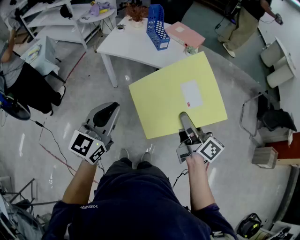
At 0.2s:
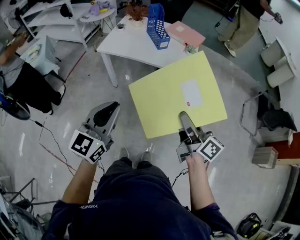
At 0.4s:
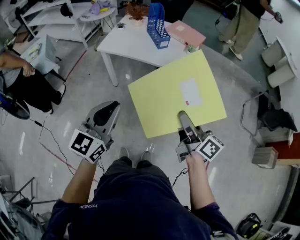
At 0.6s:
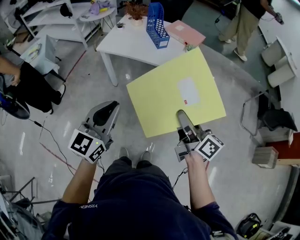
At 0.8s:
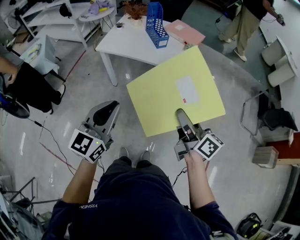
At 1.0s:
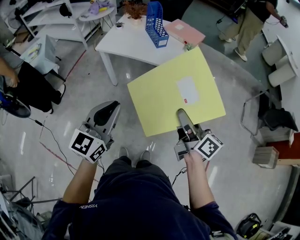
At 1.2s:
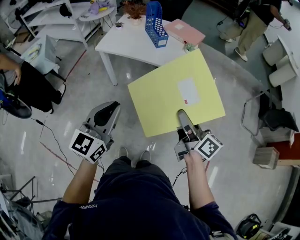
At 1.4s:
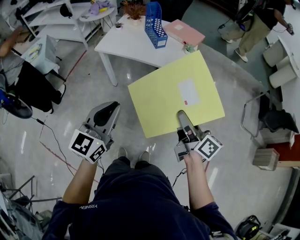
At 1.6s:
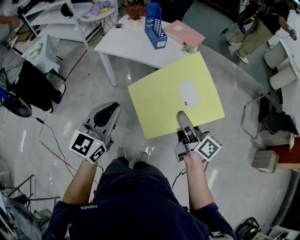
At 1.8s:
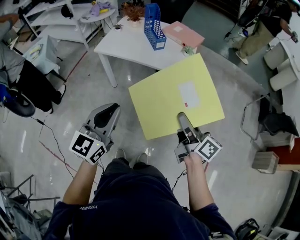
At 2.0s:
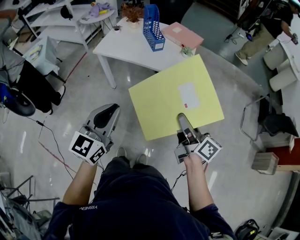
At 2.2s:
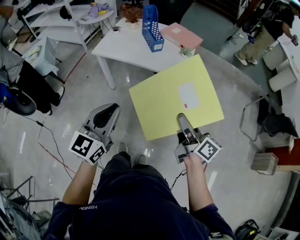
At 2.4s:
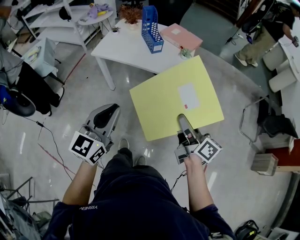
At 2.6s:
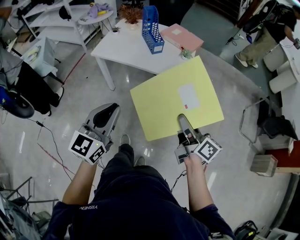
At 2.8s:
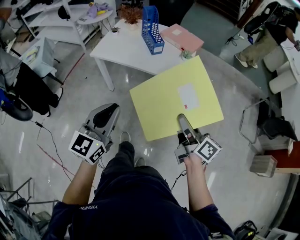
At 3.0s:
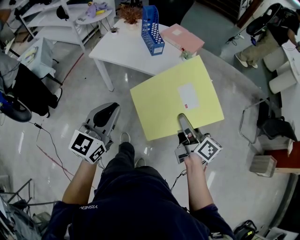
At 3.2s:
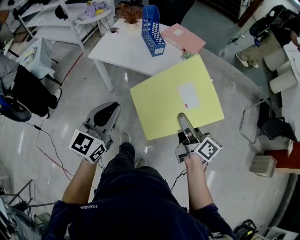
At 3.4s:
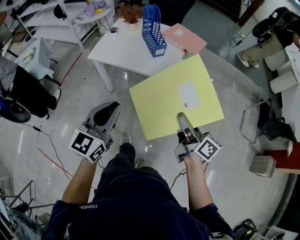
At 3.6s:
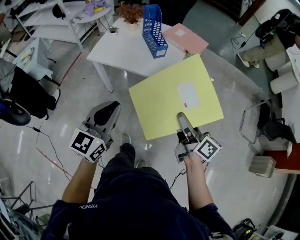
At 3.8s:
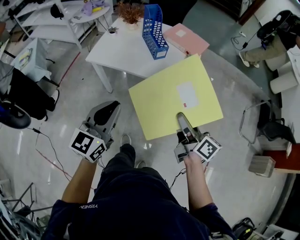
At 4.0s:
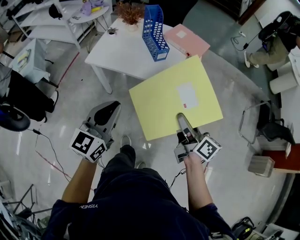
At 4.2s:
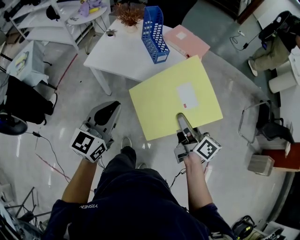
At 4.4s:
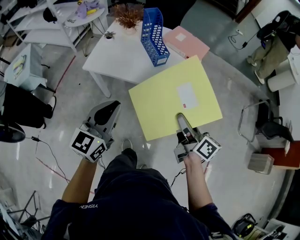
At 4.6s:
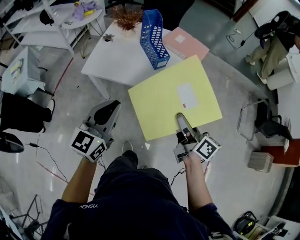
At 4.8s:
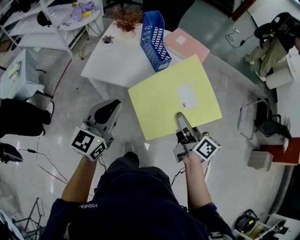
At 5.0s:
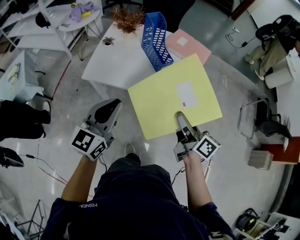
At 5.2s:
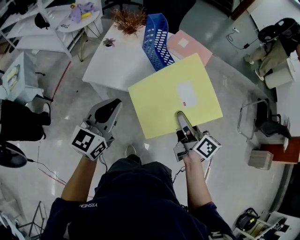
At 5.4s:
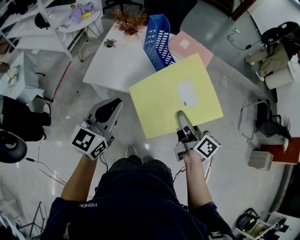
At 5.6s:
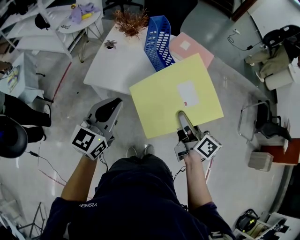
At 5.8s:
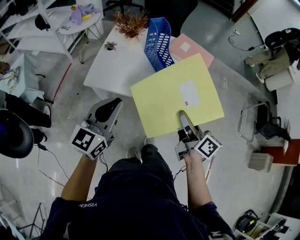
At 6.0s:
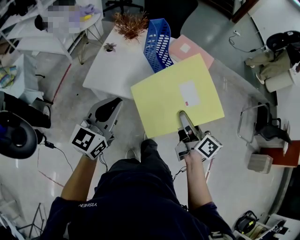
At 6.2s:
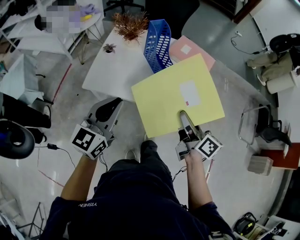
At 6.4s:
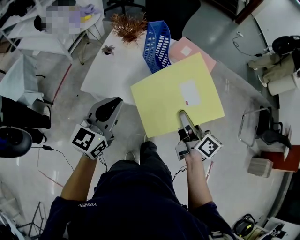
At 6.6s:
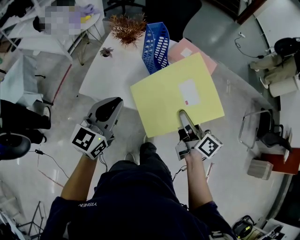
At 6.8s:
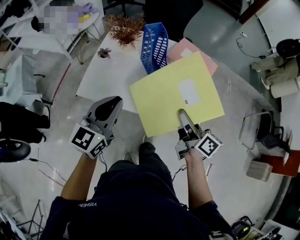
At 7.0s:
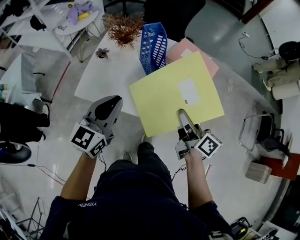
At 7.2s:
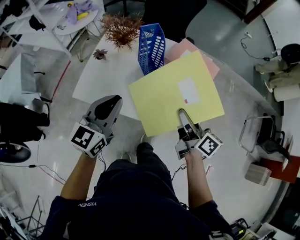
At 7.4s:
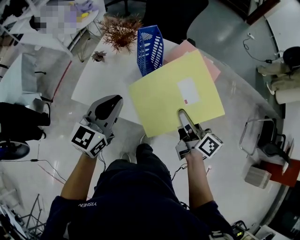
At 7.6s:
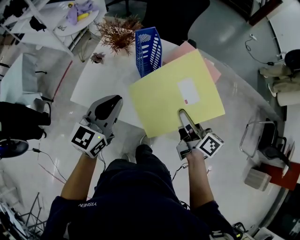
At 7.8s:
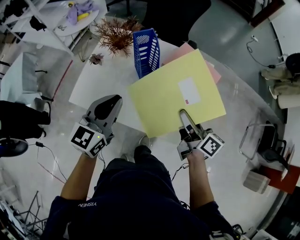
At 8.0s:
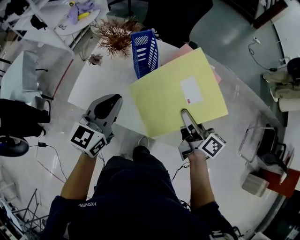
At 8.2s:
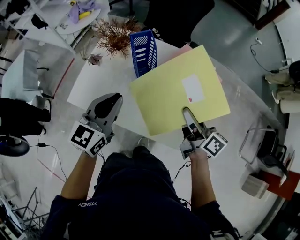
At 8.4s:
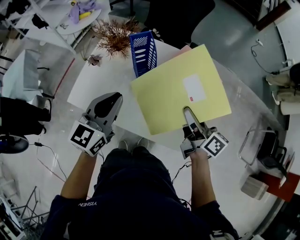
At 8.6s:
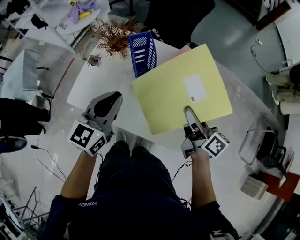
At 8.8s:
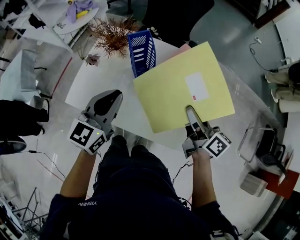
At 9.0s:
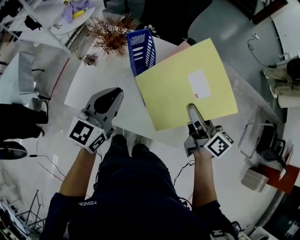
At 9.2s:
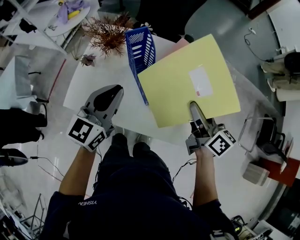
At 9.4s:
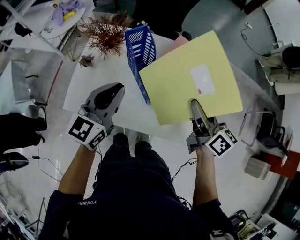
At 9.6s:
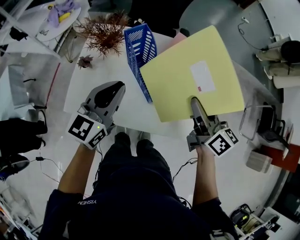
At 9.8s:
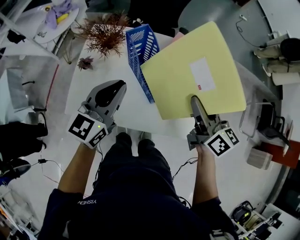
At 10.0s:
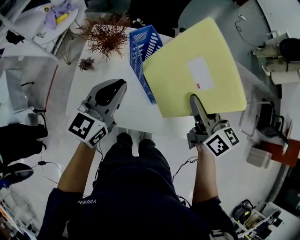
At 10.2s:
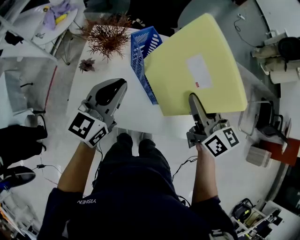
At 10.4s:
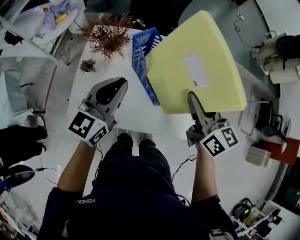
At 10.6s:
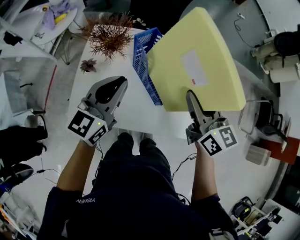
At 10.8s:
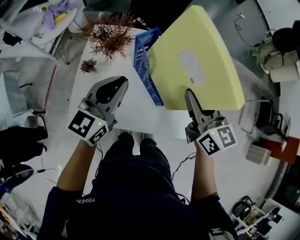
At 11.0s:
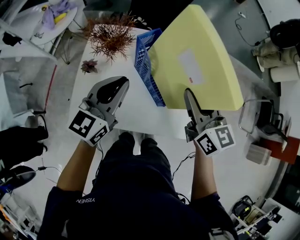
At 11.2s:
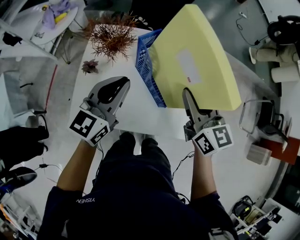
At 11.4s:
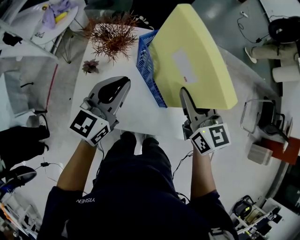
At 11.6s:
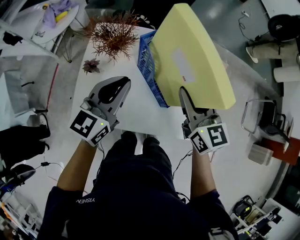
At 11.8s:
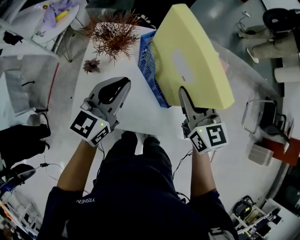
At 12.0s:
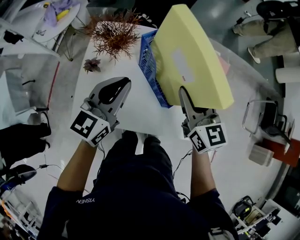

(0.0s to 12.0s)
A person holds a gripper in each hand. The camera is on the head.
0.0s - 1.6s: The right gripper moves about 5 cm.
1.6s - 3.0s: Both grippers move forward, approximately 5 cm.
3.0s - 4.4s: The right gripper moves forward and to the left, roughly 15 cm. The left gripper shifts about 15 cm forward.
4.4s - 6.0s: The two grippers go some 15 cm forward and to the left.
6.0s - 7.6s: Both grippers travel together forward and to the right, roughly 20 cm.
7.6s - 9.0s: The two grippers go about 5 cm forward.
9.0s - 10.4s: The right gripper is displaced to the left and upward by some 10 cm, and changes its angle by roughly 30 degrees, while the left gripper travels to the left by roughly 5 cm.
10.4s - 12.0s: The right gripper heads to the left, covering some 5 cm.

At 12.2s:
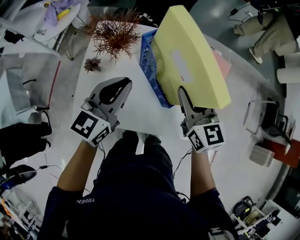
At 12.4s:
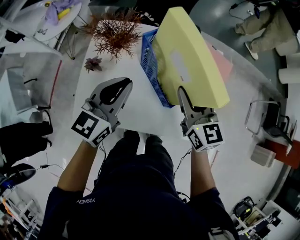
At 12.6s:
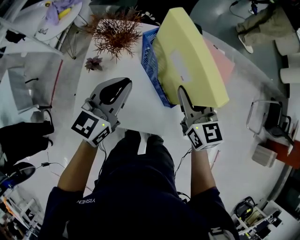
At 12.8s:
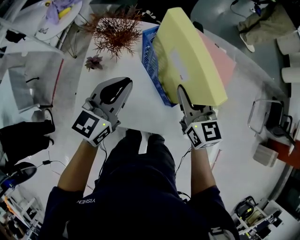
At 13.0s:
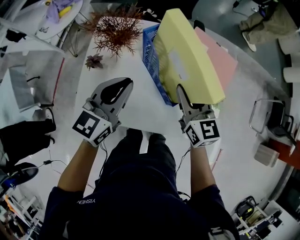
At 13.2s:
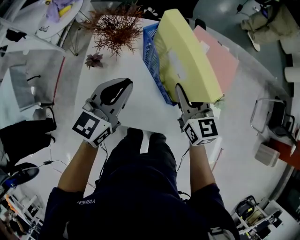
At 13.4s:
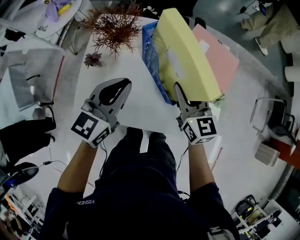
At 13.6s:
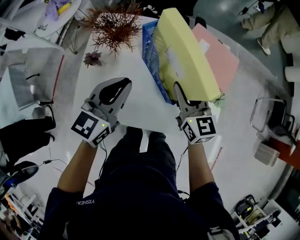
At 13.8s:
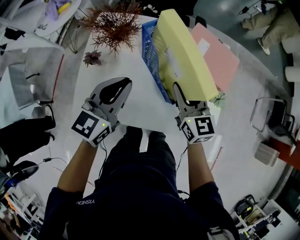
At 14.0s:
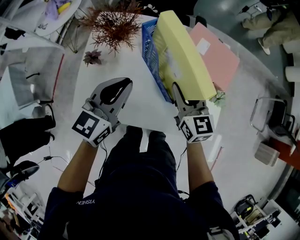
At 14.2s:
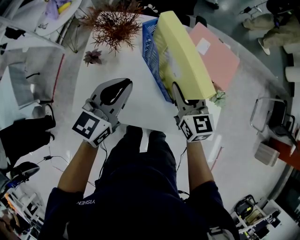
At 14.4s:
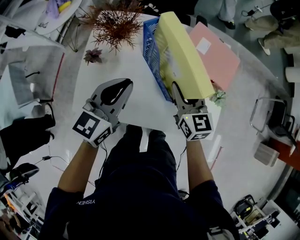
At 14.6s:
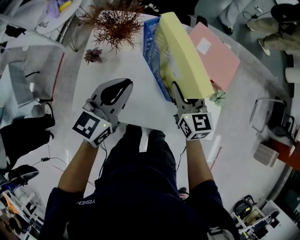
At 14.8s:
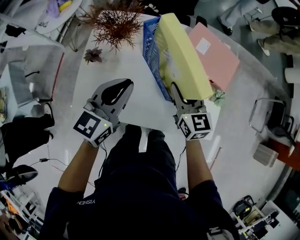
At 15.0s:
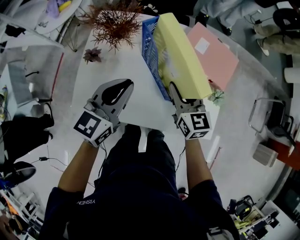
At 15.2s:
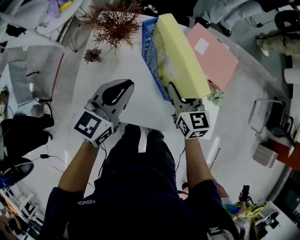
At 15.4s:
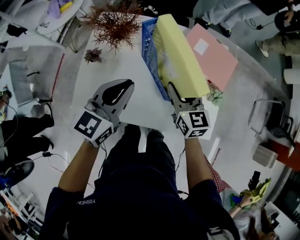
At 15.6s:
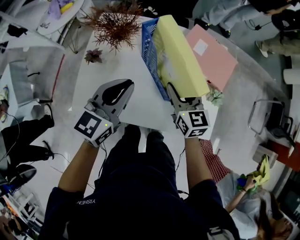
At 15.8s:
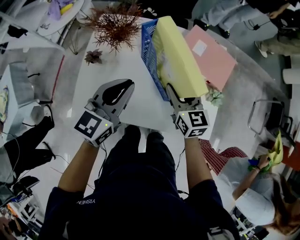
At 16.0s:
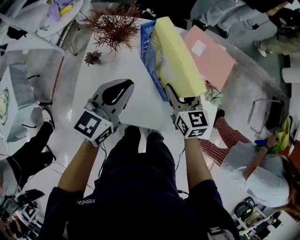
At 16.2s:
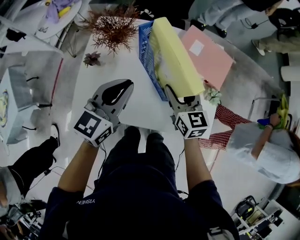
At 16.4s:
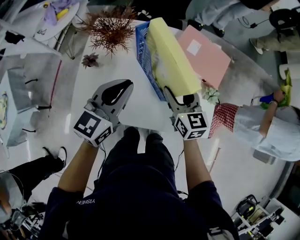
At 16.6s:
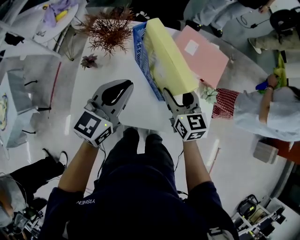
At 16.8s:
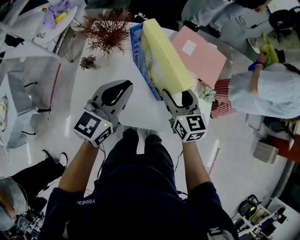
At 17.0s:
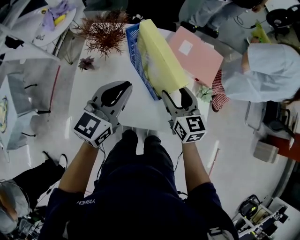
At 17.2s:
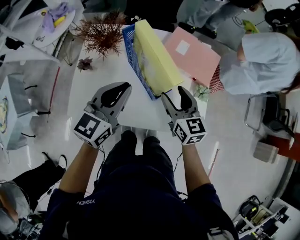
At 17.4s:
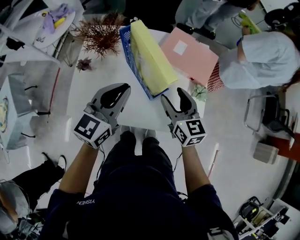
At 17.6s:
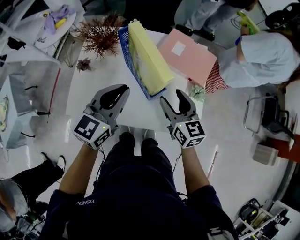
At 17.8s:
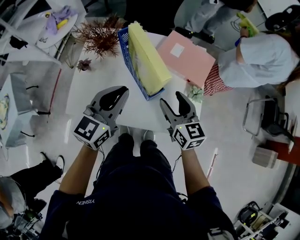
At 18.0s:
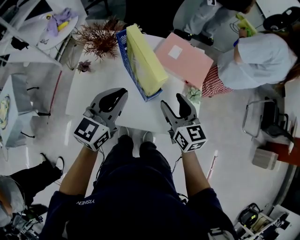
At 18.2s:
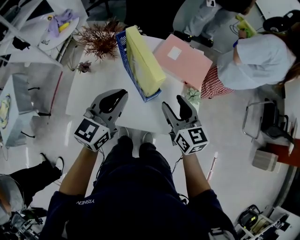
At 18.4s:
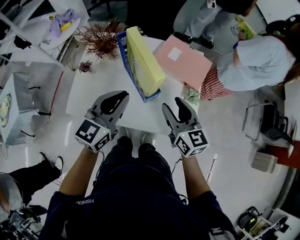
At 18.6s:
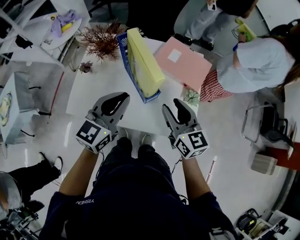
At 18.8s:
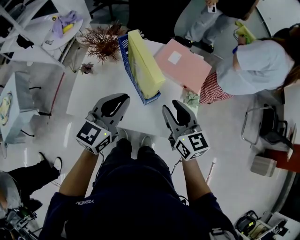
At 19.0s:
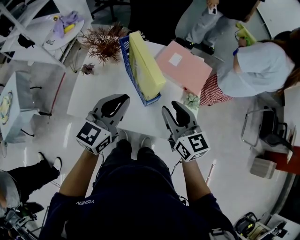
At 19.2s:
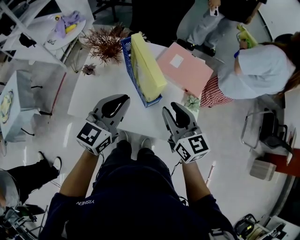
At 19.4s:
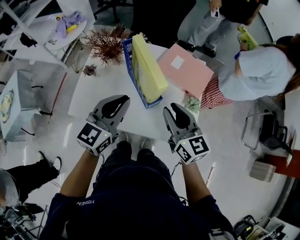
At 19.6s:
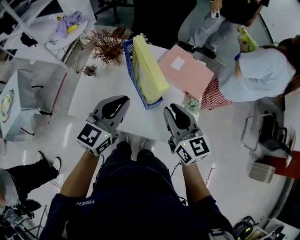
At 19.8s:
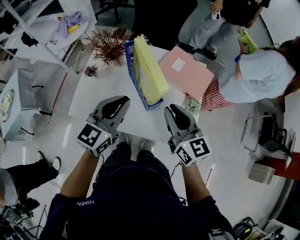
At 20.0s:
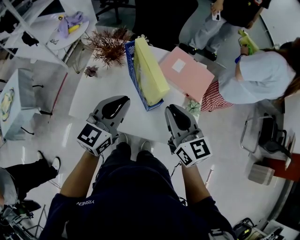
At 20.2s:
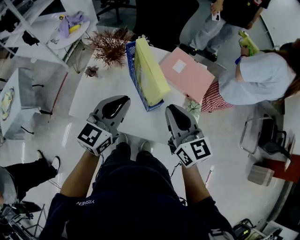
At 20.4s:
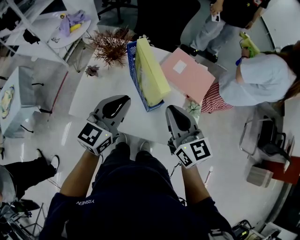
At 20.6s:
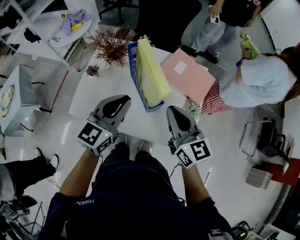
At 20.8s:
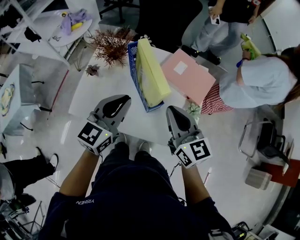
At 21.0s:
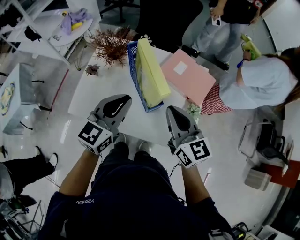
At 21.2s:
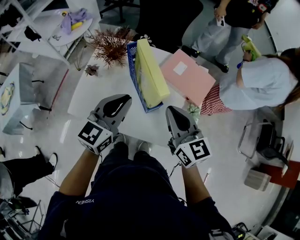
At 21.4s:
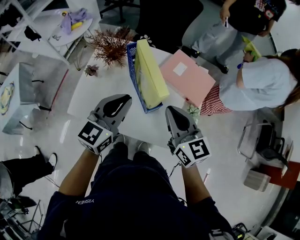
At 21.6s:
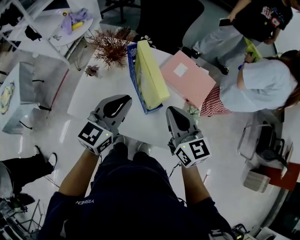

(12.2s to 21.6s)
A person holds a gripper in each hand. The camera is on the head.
12.2s - 13.8s: The right gripper travels downward by about 10 cm.
13.8s - 15.4s: There are only small adjustments of the grippers.
15.4s - 17.0s: The right gripper moves some 5 cm.
17.0s - 18.4s: The right gripper travels backward, to the right and upward by roughly 10 cm. Meanwhile the left gripper moves to the right, approximately 5 cm.
18.4s - 20.0s: The right gripper heads upward, covering approximately 5 cm, and closes up.
20.0s - 21.6s: The grippers move only a little.

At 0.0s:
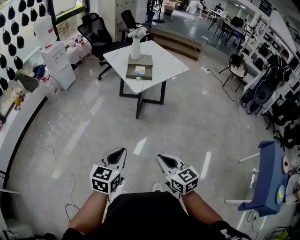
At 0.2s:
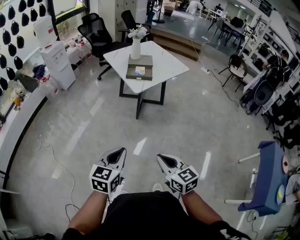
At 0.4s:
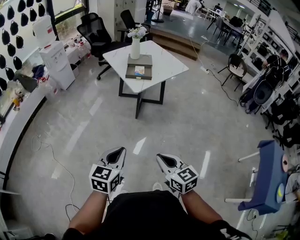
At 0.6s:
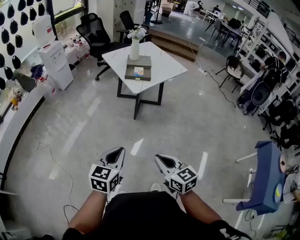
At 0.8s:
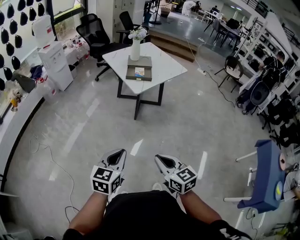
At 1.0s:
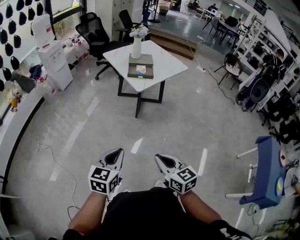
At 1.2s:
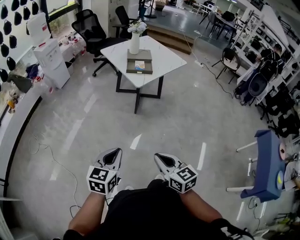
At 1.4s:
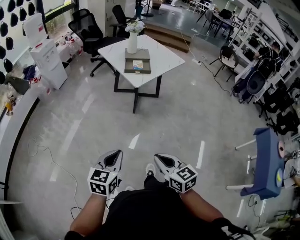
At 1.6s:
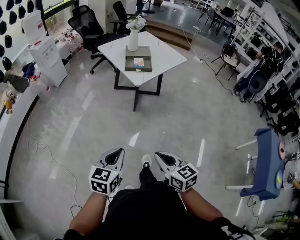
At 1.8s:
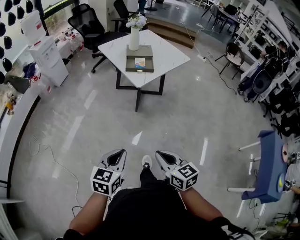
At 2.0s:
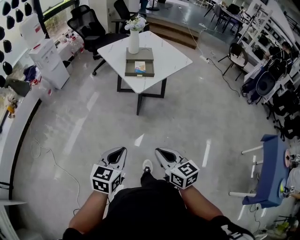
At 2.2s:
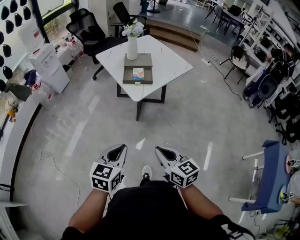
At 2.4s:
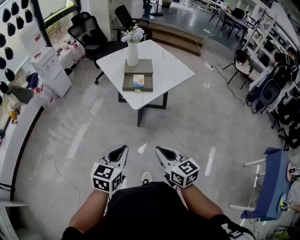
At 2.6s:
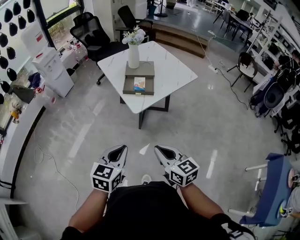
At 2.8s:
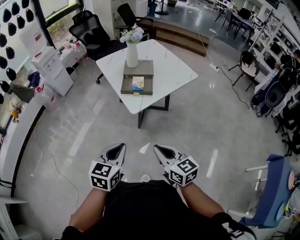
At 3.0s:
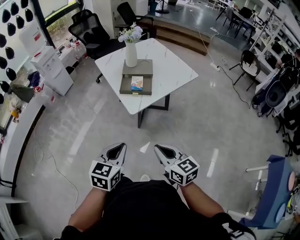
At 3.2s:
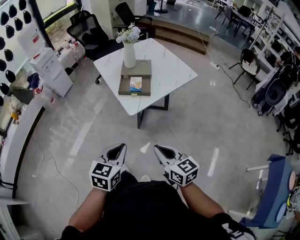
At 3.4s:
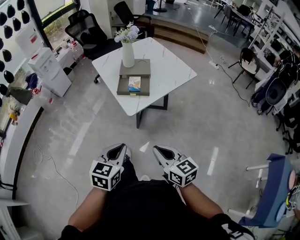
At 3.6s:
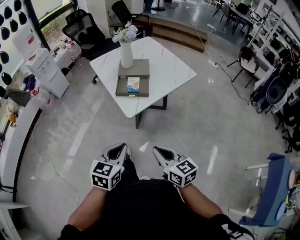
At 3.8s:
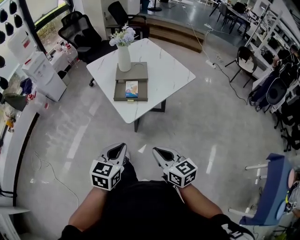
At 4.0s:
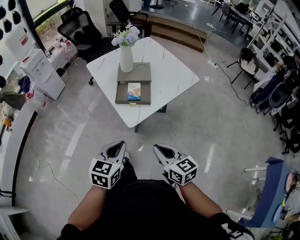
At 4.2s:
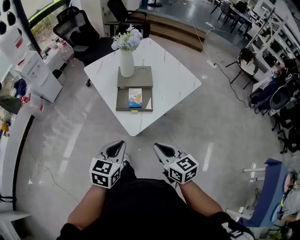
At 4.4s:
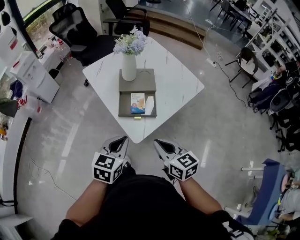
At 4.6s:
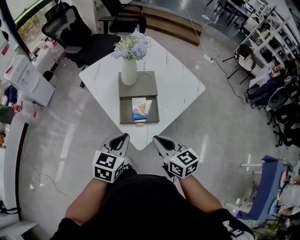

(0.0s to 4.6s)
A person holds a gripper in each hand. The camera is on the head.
0.0s - 1.6s: Both grippers move to the left, about 10 cm.
1.6s - 3.0s: The two grippers go about 35 cm forward and to the right.
3.0s - 4.6s: Both grippers travel together forward, about 35 cm.
